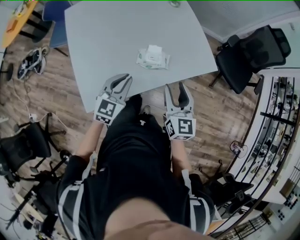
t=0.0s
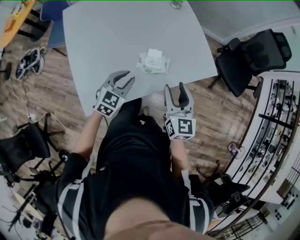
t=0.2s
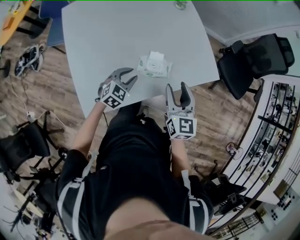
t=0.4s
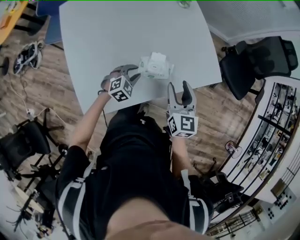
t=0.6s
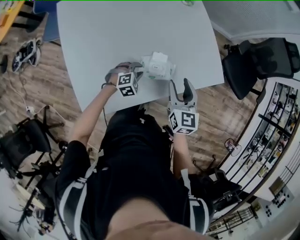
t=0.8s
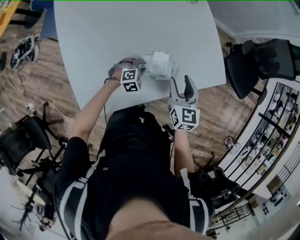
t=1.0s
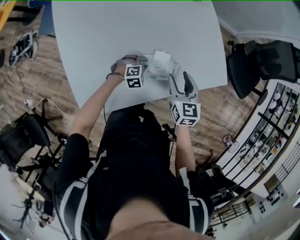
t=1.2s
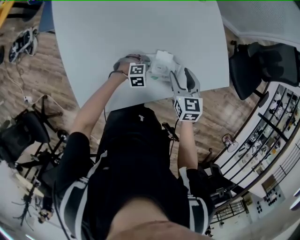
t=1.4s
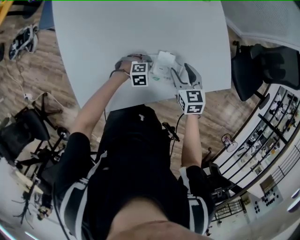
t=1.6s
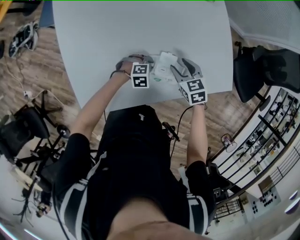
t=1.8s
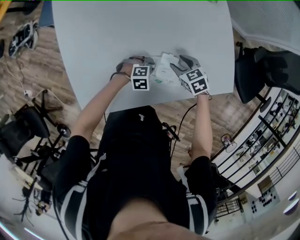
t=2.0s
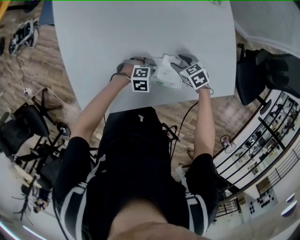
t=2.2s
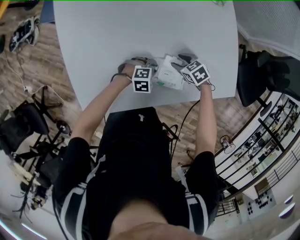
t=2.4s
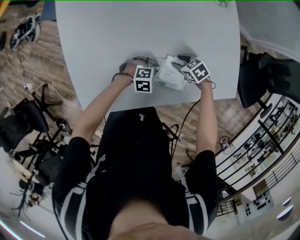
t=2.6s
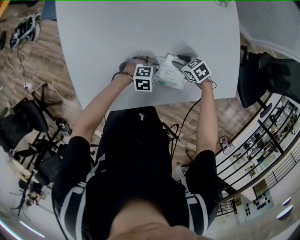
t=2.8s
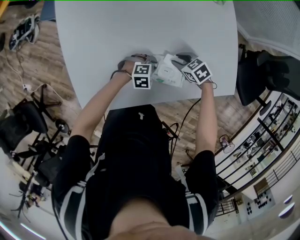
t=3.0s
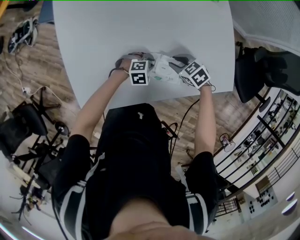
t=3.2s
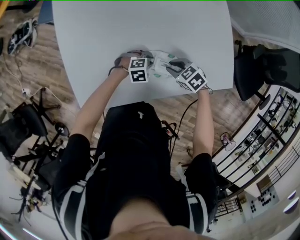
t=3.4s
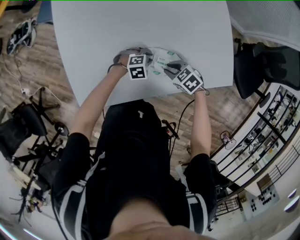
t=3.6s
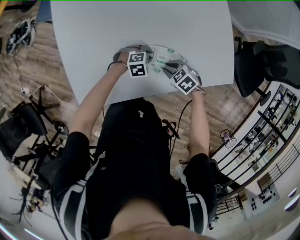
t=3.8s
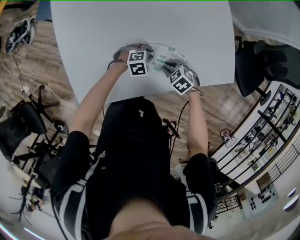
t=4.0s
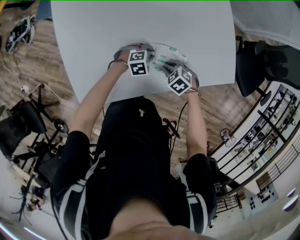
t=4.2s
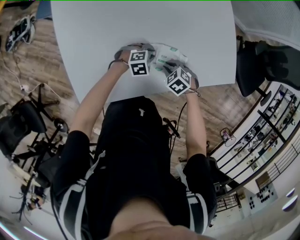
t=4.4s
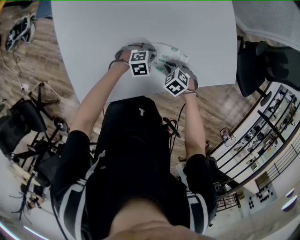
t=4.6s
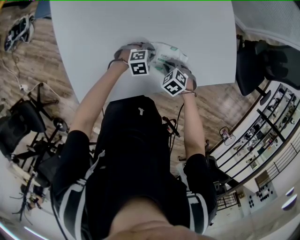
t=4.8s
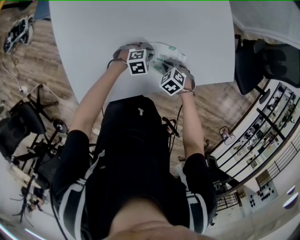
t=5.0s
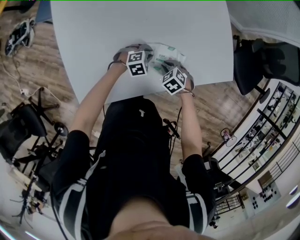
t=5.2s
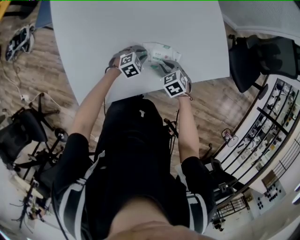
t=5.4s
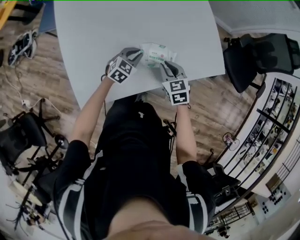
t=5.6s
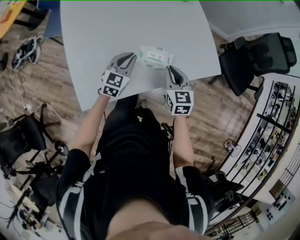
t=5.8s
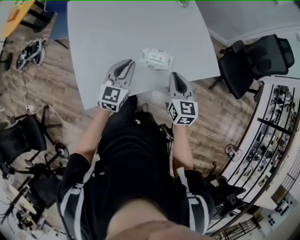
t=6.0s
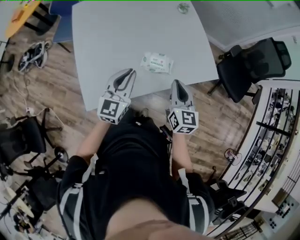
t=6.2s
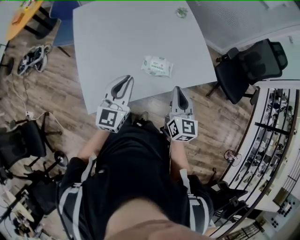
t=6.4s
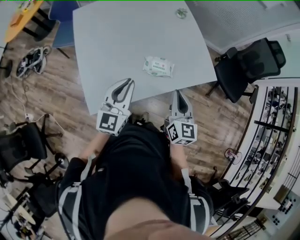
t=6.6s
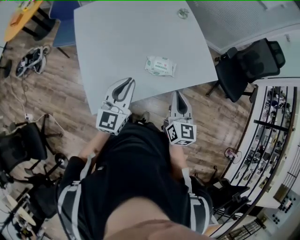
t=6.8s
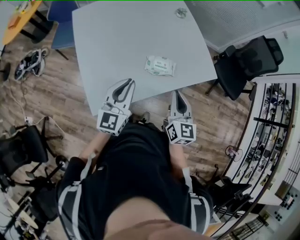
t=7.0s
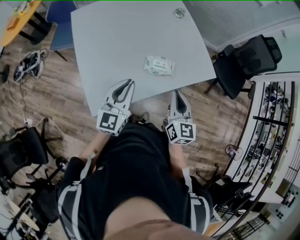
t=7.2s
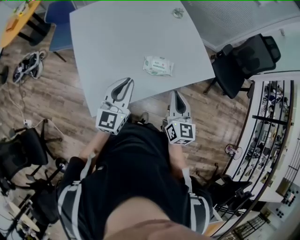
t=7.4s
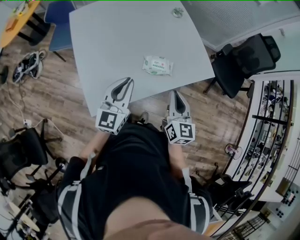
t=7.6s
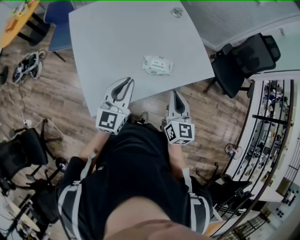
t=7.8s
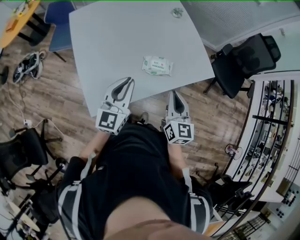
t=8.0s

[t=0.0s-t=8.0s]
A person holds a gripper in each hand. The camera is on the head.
t=0.0s to t=1.6s: The left gripper goes some 35 cm downward and forward, and angles its fingers downward, by some 40 degrees. Meanwhile the right gripper shifts some 30 cm forward, downward and to the left, and swivels about 30 degrees.
t=1.6s to t=3.2s: The right gripper heads downward, covering roughly 10 cm, swivels about 40 degrees, and closes.
t=3.2s to t=4.8s: The right gripper ends up some 10 cm from where it was, and turns by about 20 degrees.
t=4.8s to t=6.4s: Both grippers move upward, some 40 cm. The left gripper points its fingers approximately 50 degrees further upward. The right gripper points its fingers about 60 degrees further upward.
t=6.4s to t=8.0s: The right gripper changes place by approximately 5 cm.

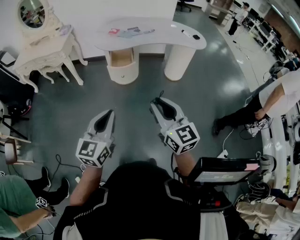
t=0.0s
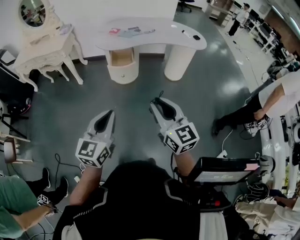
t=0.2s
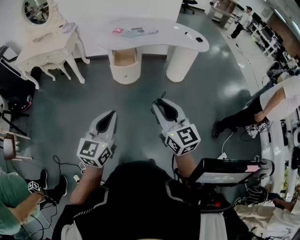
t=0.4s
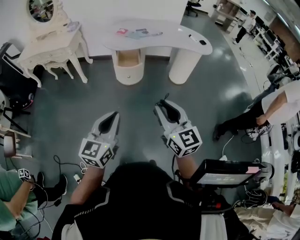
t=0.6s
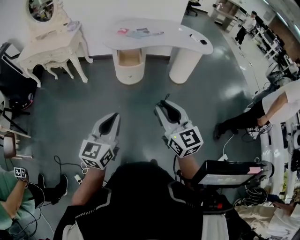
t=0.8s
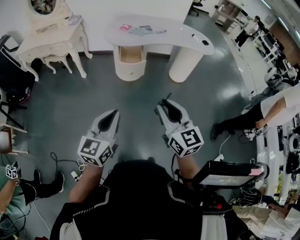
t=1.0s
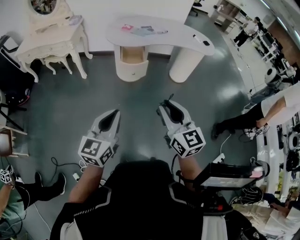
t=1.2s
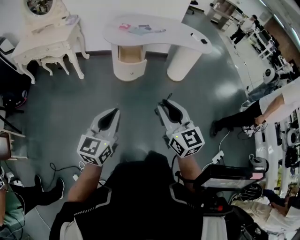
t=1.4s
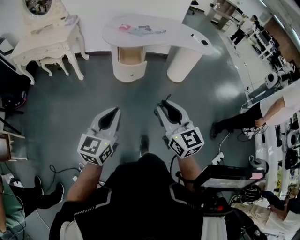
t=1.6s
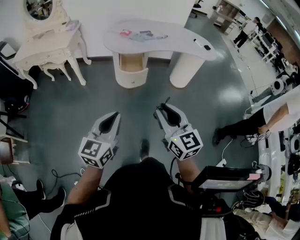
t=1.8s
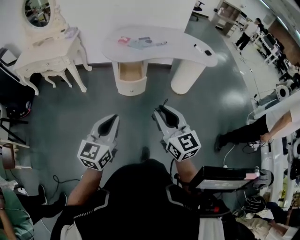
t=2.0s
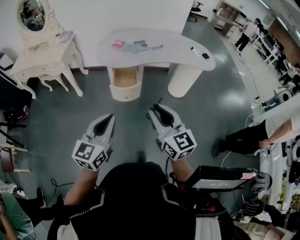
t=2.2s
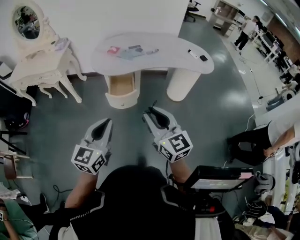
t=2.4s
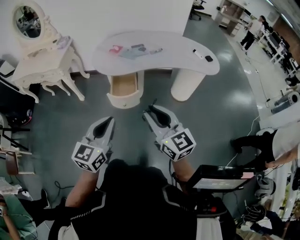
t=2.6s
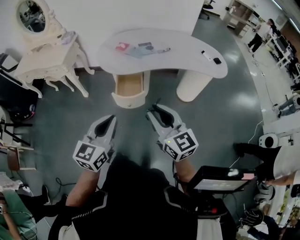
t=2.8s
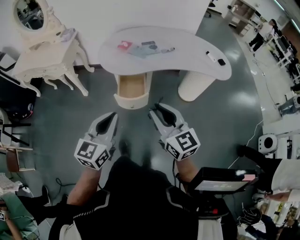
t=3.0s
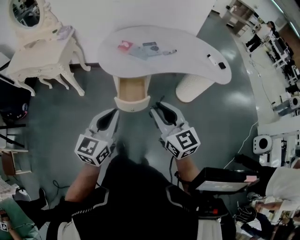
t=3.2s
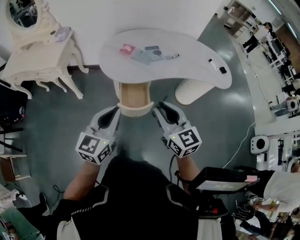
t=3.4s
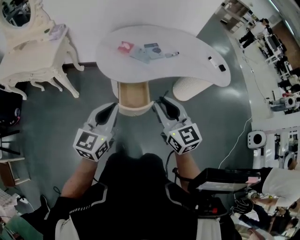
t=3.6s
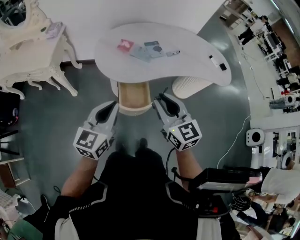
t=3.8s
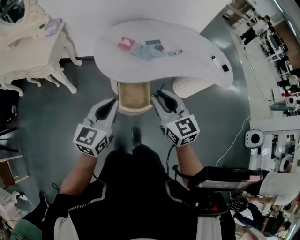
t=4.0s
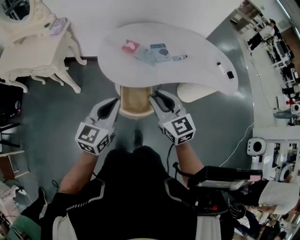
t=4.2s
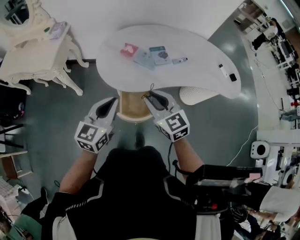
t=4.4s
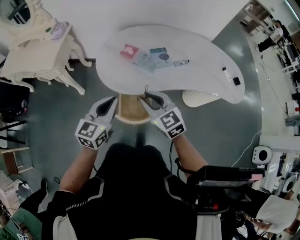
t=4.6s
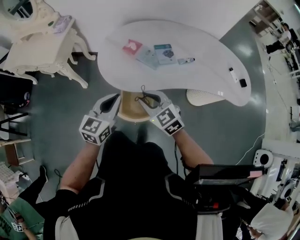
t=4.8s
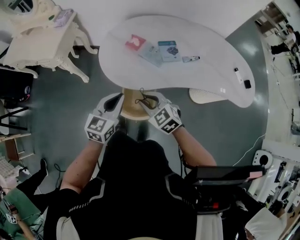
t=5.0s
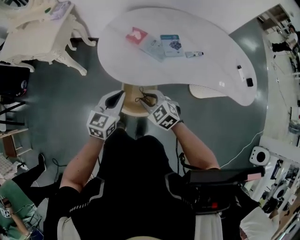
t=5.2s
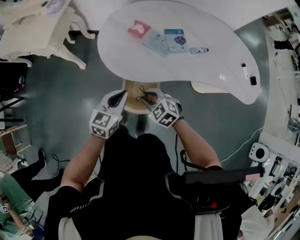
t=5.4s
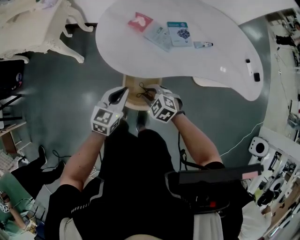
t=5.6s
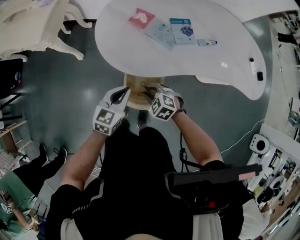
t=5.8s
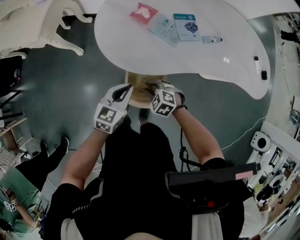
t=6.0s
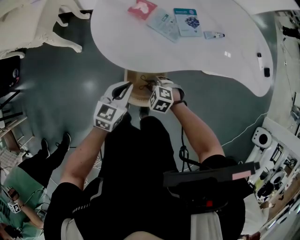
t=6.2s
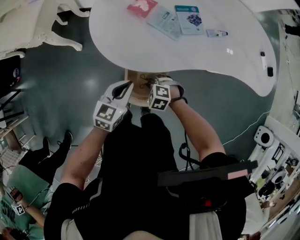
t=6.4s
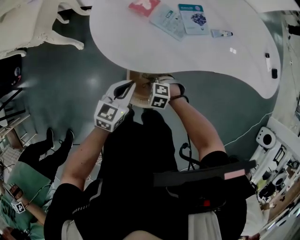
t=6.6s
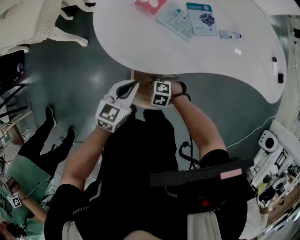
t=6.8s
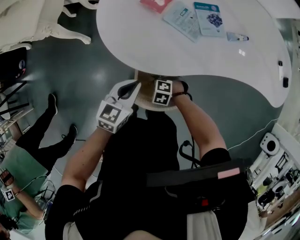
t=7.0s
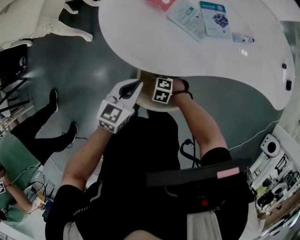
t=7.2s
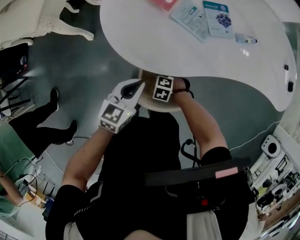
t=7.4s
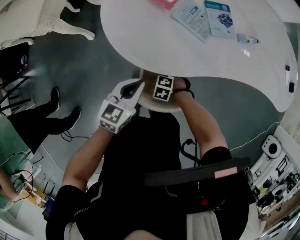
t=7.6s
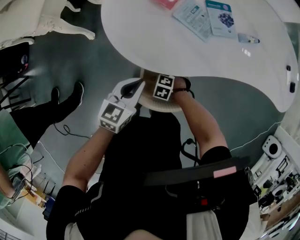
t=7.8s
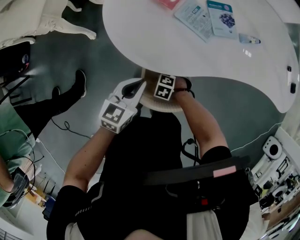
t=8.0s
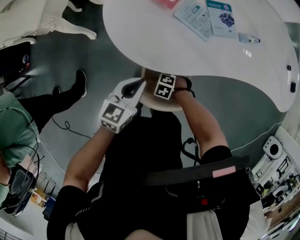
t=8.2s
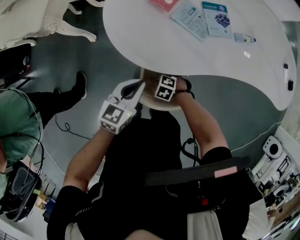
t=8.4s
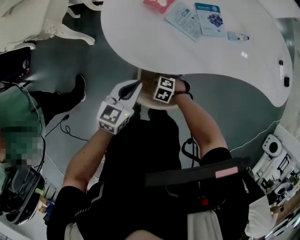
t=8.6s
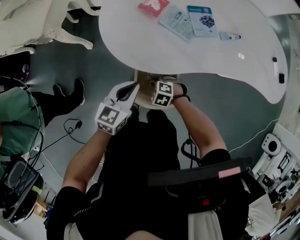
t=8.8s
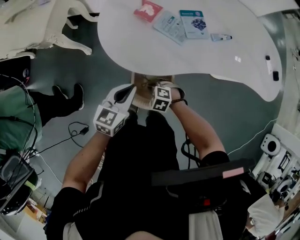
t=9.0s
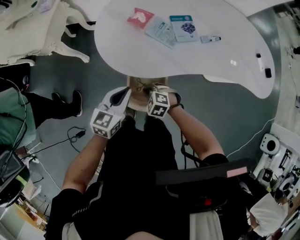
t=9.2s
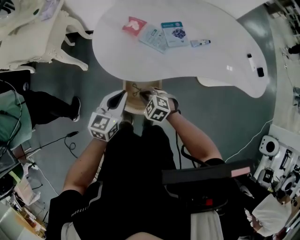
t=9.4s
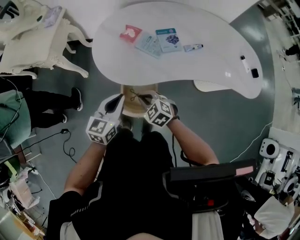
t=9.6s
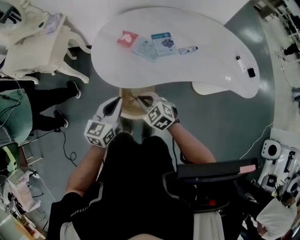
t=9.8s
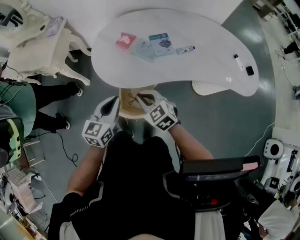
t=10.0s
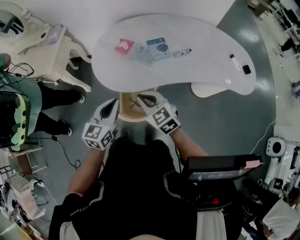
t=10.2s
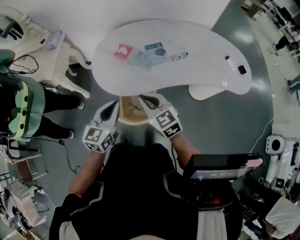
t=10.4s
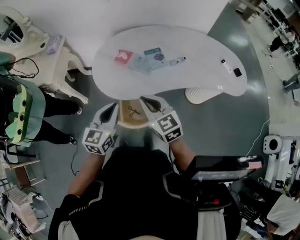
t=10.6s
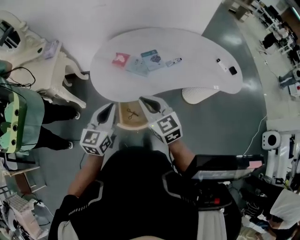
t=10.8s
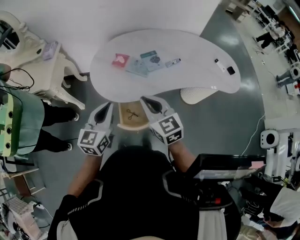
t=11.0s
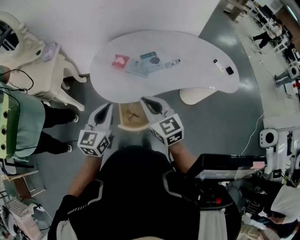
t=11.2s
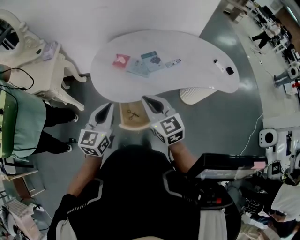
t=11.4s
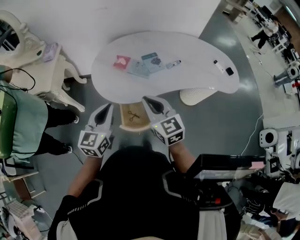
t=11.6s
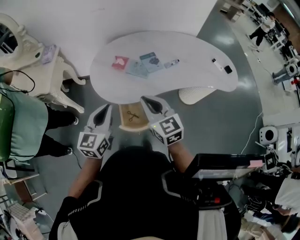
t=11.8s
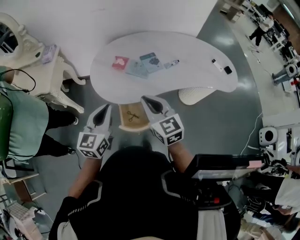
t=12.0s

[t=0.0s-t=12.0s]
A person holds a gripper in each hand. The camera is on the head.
t=0.0s to t=1.6s: Both grippers move to the left, roughly 10 cm.
t=1.6s to t=3.0s: The two grippers go about 30 cm forward.
t=3.0s to t=4.4s: The two grippers go about 25 cm forward.
t=4.4s to t=6.0s: The two grippers go about 25 cm downward. The right gripper tilts its fingers roughly 40 degrees downward.
t=6.0s to t=7.6s: The left gripper travels downward by some 5 cm. Meanwhile the right gripper shifts approximately 15 cm downward.
t=7.6s to t=9.0s: The right gripper goes about 10 cm upward, and opens, then closes once more, while the left gripper travels upward by approximately 5 cm.
t=9.0s to t=10.4s: The right gripper goes some 35 cm upward, and points its fingers about 40 degrees further upward. The left gripper travels upward by some 15 cm.
t=10.4s to t=12.0s: The right gripper heads upward, covering some 5 cm; the left gripper goes roughly 10 cm upward and to the left.

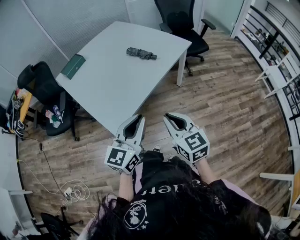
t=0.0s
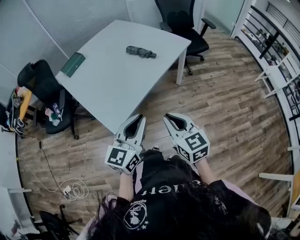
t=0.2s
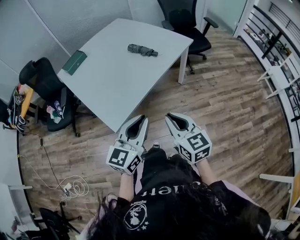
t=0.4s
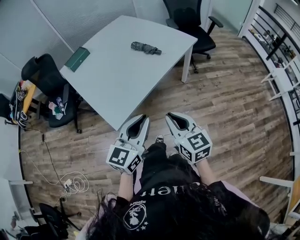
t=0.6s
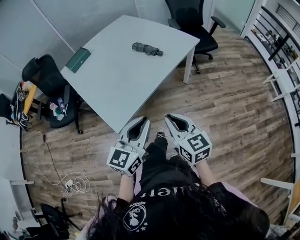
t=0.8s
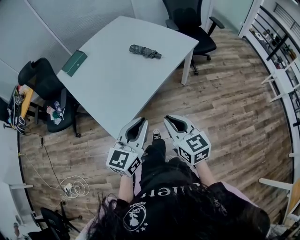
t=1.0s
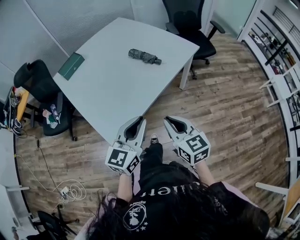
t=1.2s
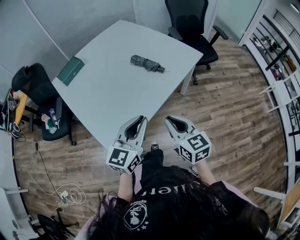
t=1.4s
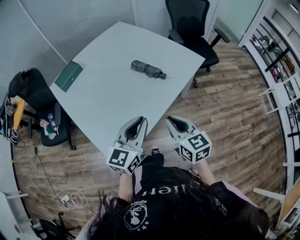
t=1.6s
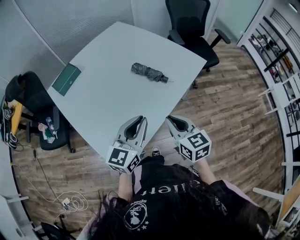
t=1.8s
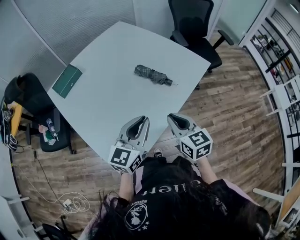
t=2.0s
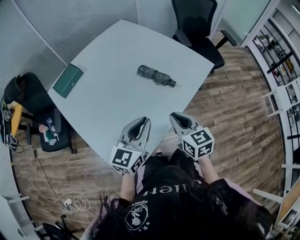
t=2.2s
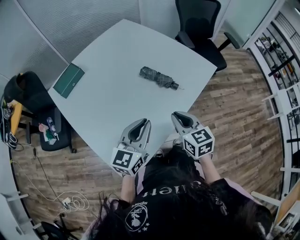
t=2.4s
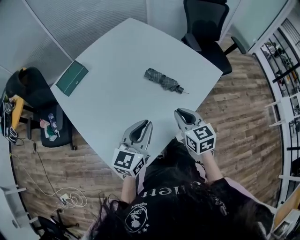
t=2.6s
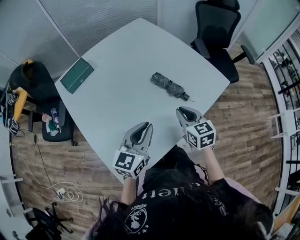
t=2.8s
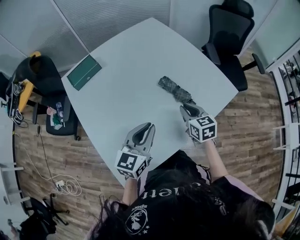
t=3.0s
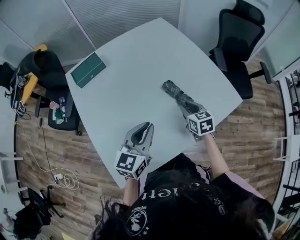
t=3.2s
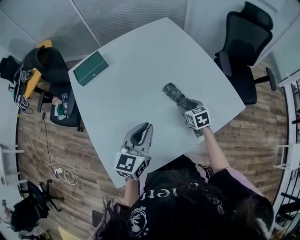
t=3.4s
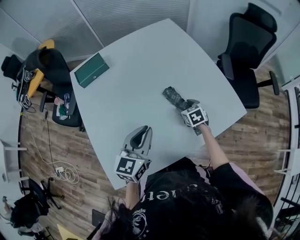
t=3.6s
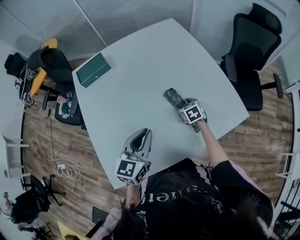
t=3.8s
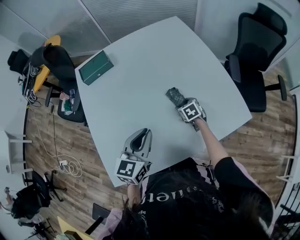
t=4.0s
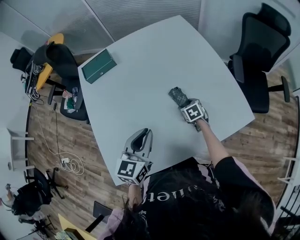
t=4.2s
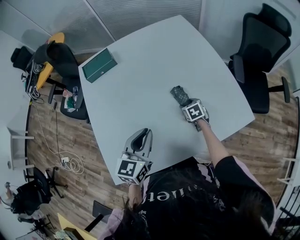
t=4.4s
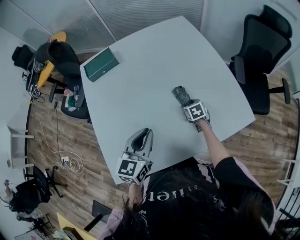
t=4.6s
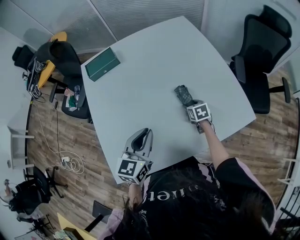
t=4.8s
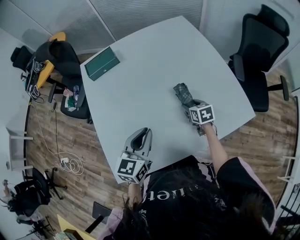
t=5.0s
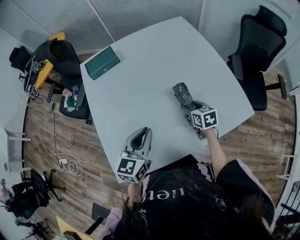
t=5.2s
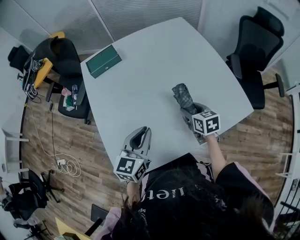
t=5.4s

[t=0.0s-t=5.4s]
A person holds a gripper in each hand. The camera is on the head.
t=0.0s to t=1.4s: The grippers both shift forward by roughly 15 cm.
t=1.4s to t=2.8s: The two grippers go about 25 cm forward.
t=2.8s to t=4.0s: The right gripper travels downward and forward by roughly 30 cm, changes its angle by some 40 degrees, and opens up, while the left gripper heads forward, covering roughly 10 cm, and swivels approximately 20 degrees.
t=4.0s to t=5.4s: The left gripper goes about 5 cm to the left. The right gripper moves upward and backward, about 15 cm, and changes its angle by about 20 degrees.
